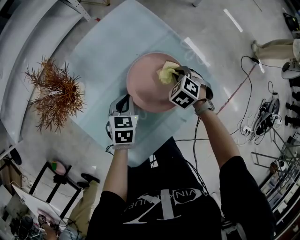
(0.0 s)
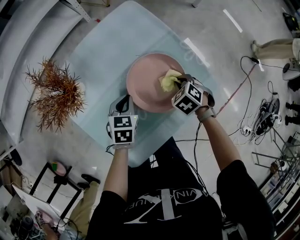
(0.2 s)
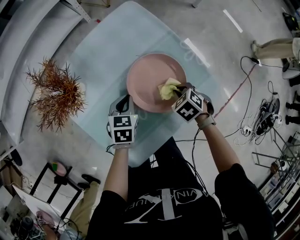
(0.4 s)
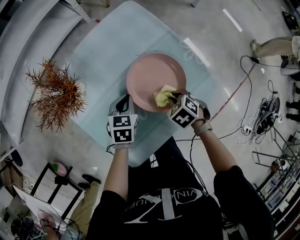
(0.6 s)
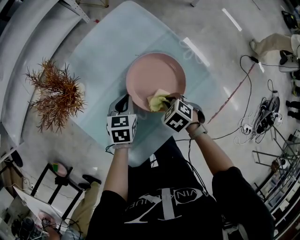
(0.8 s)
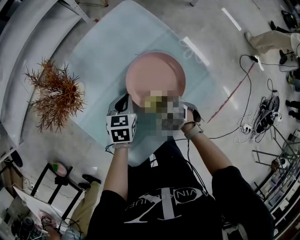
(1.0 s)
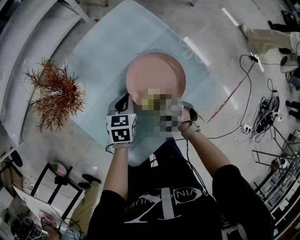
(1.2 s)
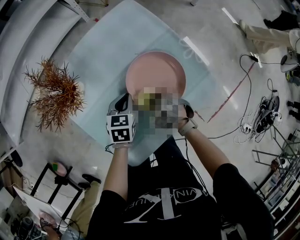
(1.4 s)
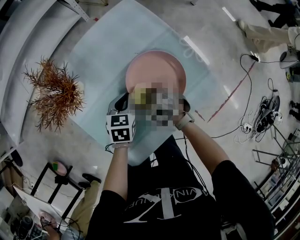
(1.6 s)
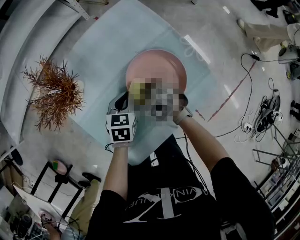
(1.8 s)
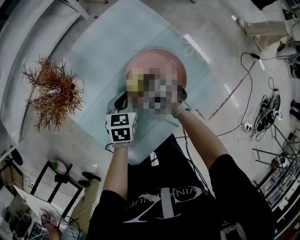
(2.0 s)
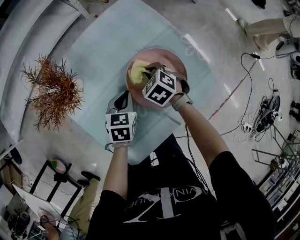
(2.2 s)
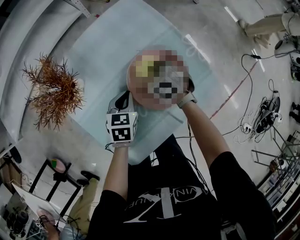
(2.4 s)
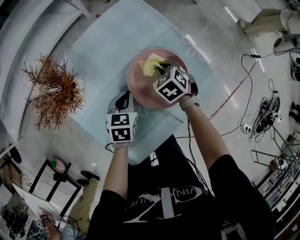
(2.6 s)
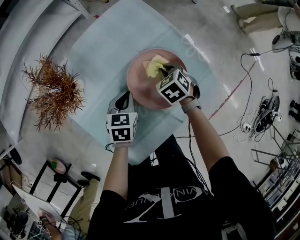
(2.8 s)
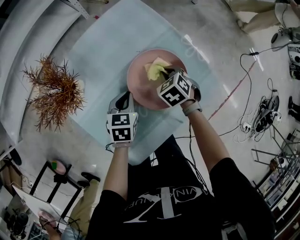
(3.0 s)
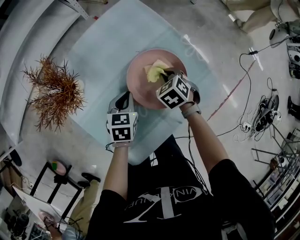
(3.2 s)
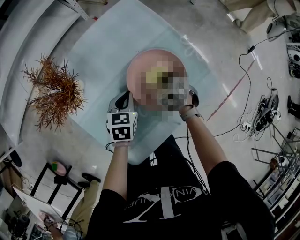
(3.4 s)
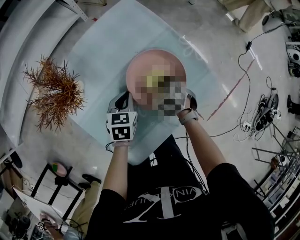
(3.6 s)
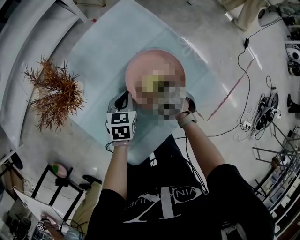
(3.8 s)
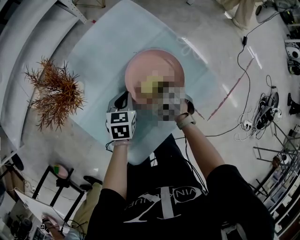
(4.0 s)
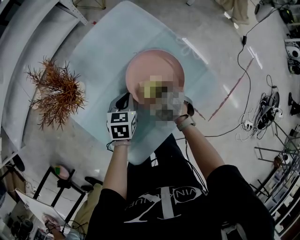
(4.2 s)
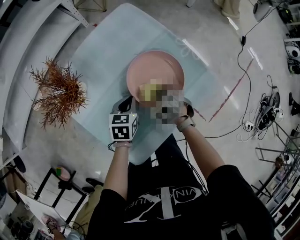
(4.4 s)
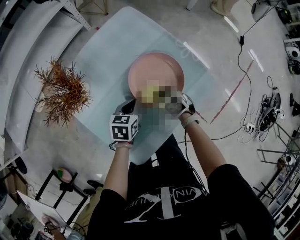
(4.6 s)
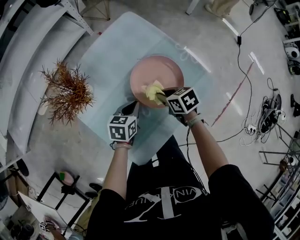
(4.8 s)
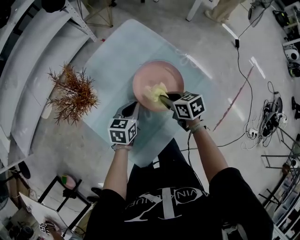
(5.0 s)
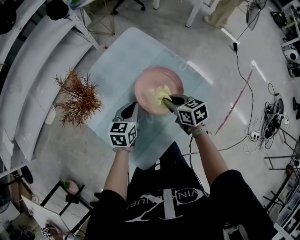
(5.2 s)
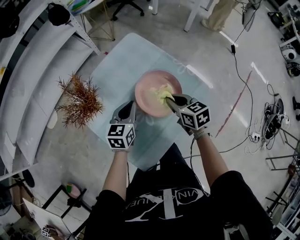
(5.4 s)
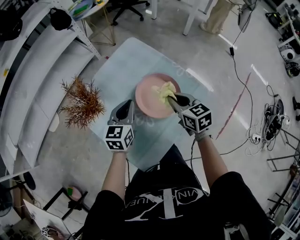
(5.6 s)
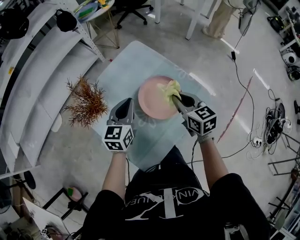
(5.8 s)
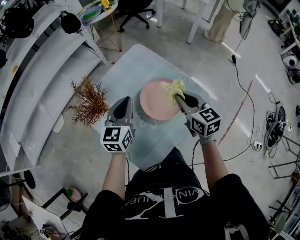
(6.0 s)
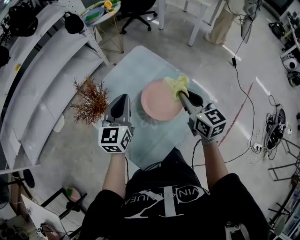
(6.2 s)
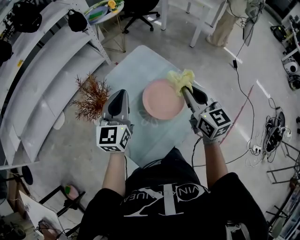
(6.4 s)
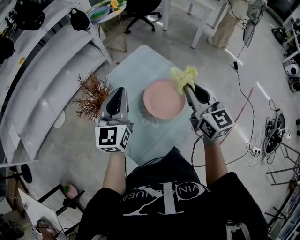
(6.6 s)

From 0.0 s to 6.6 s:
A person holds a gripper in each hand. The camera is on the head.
From 0.0 s to 1.6 s: The right gripper changes place by approximately 15 cm, and changes its angle by approximately 20 degrees.
From 1.6 s to 3.2 s: The right gripper moves to the right and forward, some 10 cm, and rotates some 20 degrees.
From 3.2 s to 5.0 s: The left gripper heads upward, covering roughly 5 cm. The right gripper is displaced backward and upward by about 10 cm, and turns by about 50 degrees.
From 5.0 s to 6.6 s: The two grippers go about 30 cm upward. The right gripper points its fingers approximately 40 degrees further upward, while the left gripper tilts its fingers about 40 degrees upward.

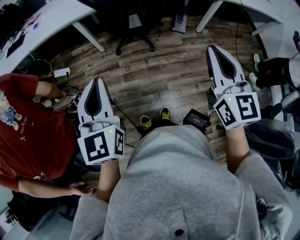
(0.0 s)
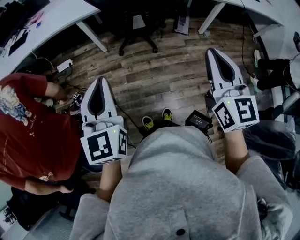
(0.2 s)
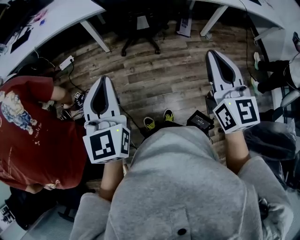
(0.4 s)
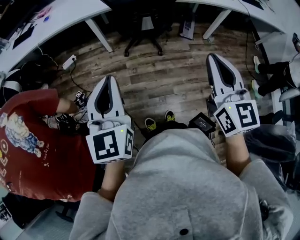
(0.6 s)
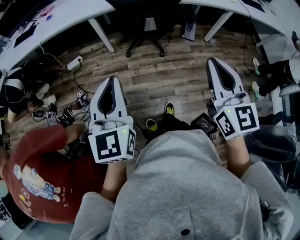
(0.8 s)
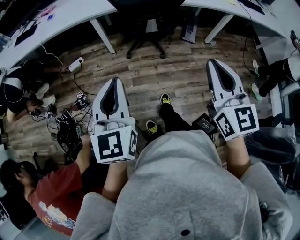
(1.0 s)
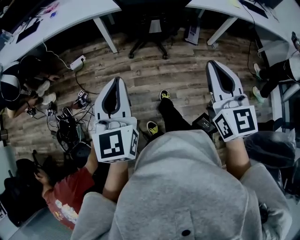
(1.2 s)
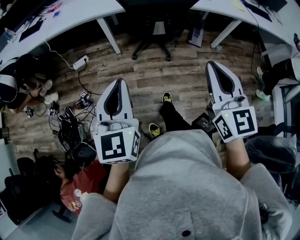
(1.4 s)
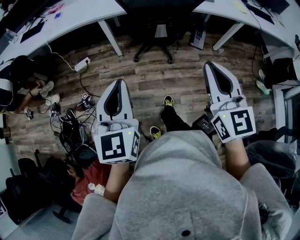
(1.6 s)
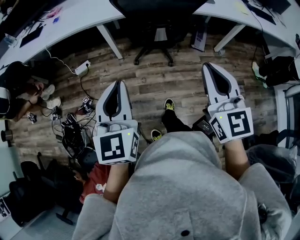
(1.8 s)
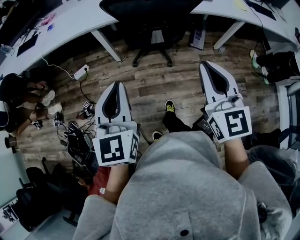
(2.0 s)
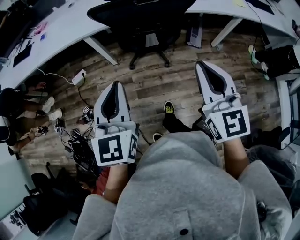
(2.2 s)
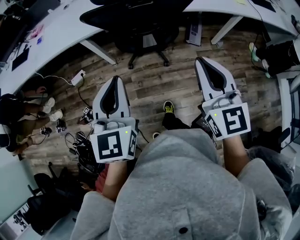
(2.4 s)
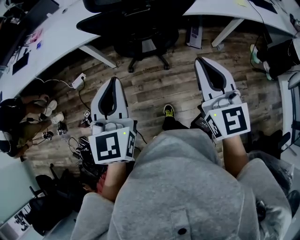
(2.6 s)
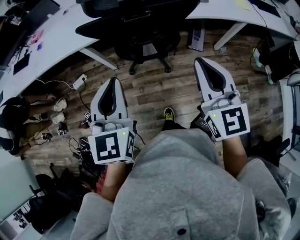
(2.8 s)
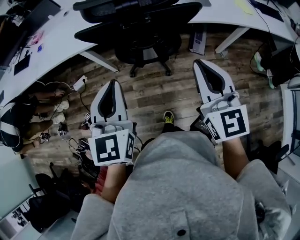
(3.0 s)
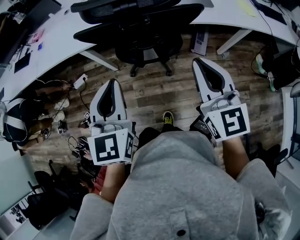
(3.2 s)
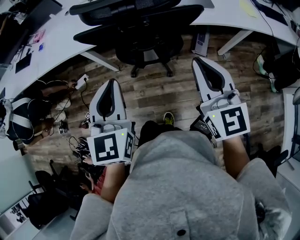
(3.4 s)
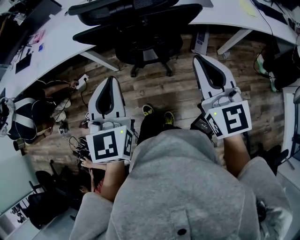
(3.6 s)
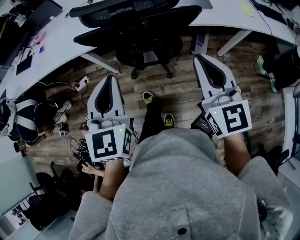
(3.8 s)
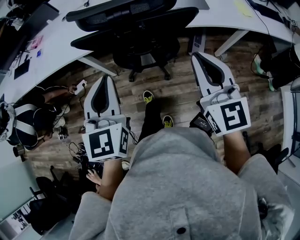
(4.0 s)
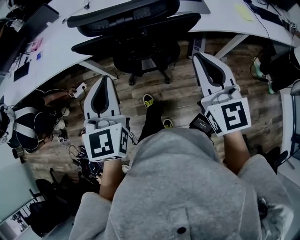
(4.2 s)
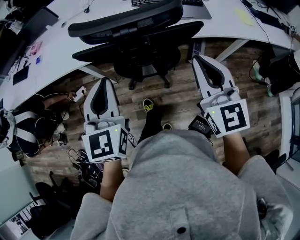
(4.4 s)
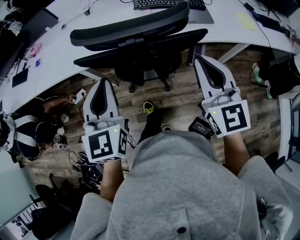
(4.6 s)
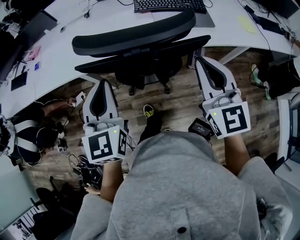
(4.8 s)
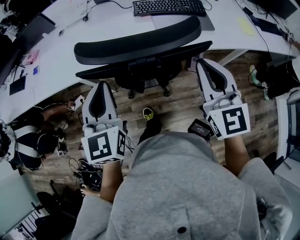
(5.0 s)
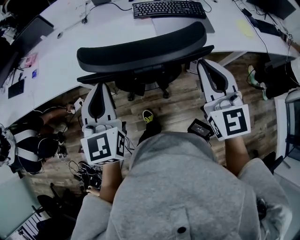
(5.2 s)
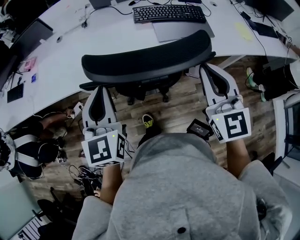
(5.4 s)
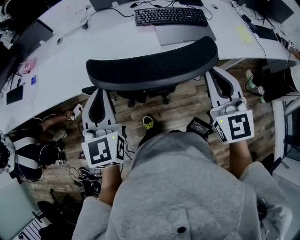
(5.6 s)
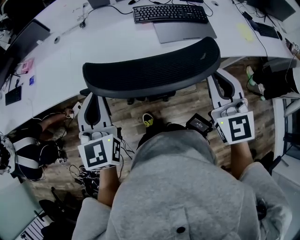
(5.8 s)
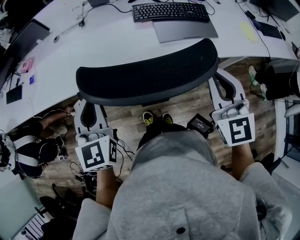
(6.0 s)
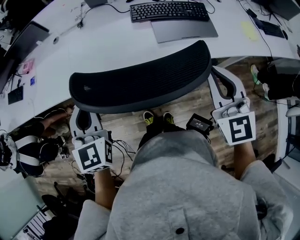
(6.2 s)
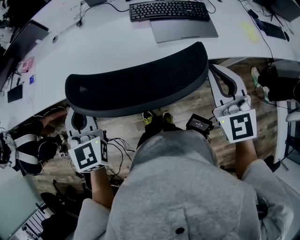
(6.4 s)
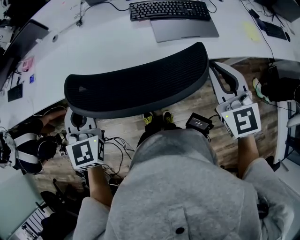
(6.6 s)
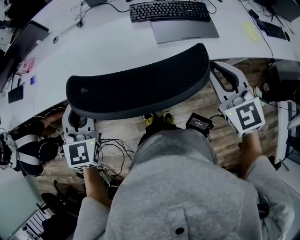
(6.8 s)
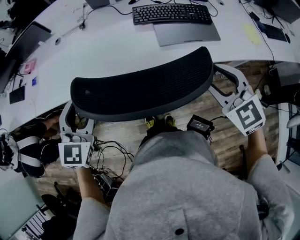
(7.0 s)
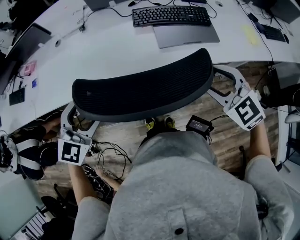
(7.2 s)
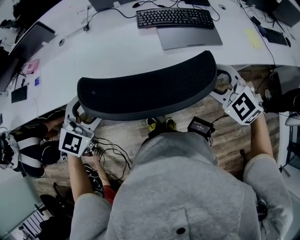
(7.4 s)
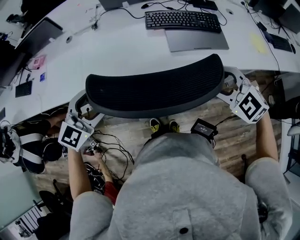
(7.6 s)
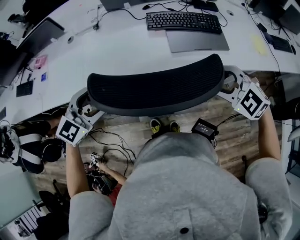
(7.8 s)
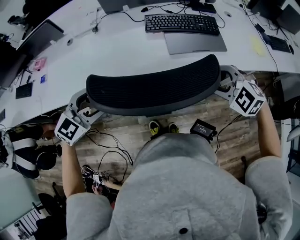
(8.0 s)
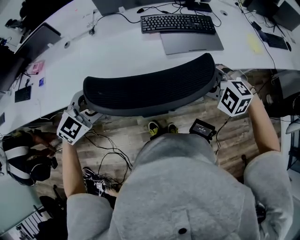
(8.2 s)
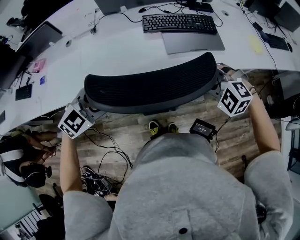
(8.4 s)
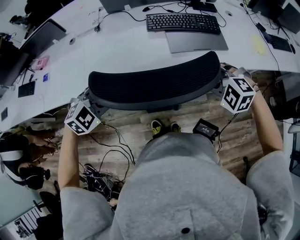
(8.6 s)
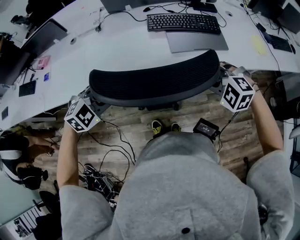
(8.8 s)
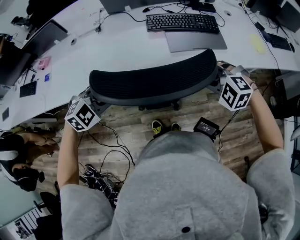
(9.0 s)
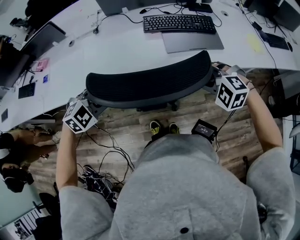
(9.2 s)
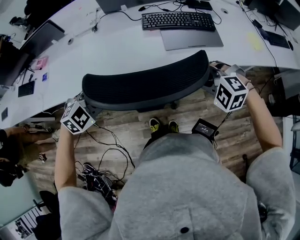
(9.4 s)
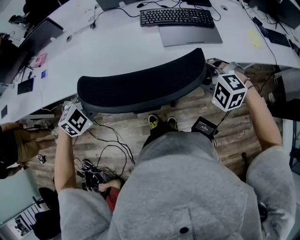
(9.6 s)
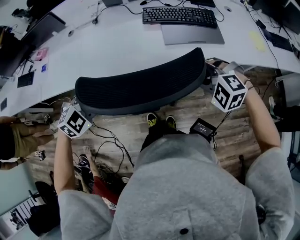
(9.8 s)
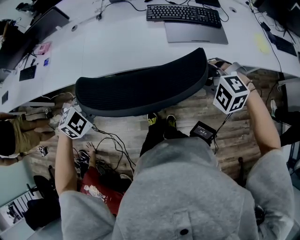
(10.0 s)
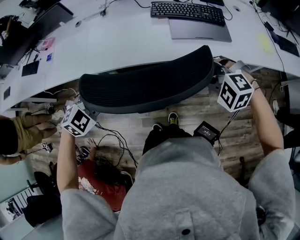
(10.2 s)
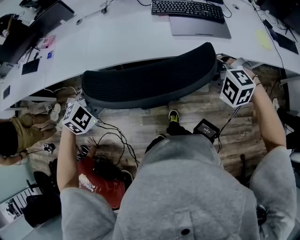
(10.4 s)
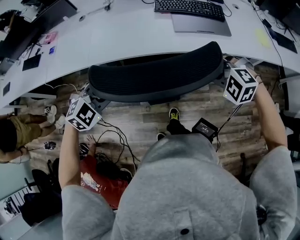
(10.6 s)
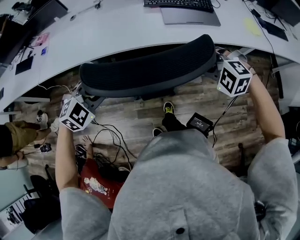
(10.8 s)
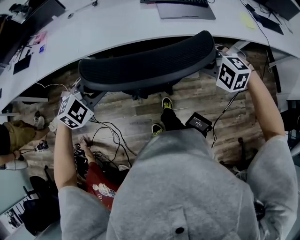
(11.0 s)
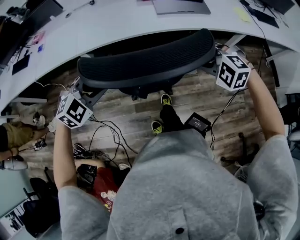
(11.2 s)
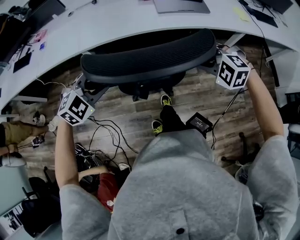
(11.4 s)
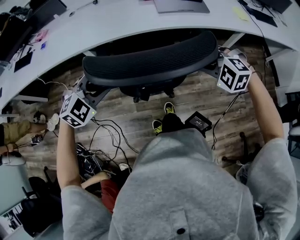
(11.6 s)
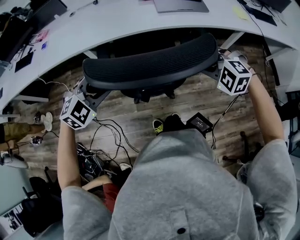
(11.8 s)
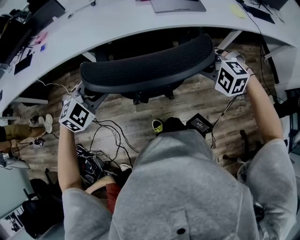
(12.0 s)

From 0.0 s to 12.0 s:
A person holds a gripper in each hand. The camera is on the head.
From 0.0 s to 1.6 s: The right gripper heads to the left, covering some 15 cm. Meanwhile the left gripper is displaced to the left by some 5 cm.
From 1.6 s to 3.0 s: The two grippers go roughly 25 cm forward and to the right.
From 3.0 s to 4.4 s: Both grippers move forward, some 10 cm.
From 4.4 s to 6.0 s: The left gripper heads forward and to the left, covering approximately 15 cm; the right gripper heads forward, covering approximately 10 cm.
From 6.0 s to 7.6 s: Both grippers travel together downward, some 5 cm. The right gripper swivels approximately 50 degrees, and opens up, while the left gripper changes its angle by roughly 40 degrees, and opens its fingers.
From 7.6 s to 9.0 s: The right gripper moves approximately 5 cm, swivels some 20 degrees, and closes. The left gripper moves downward, some 5 cm, rotates about 30 degrees, and closes its fingers.
From 9.0 s to 10.4 s: The right gripper is displaced backward by roughly 5 cm. The left gripper shifts about 10 cm backward.
From 10.4 s to 12.0 s: The two grippers go roughly 20 cm backward.

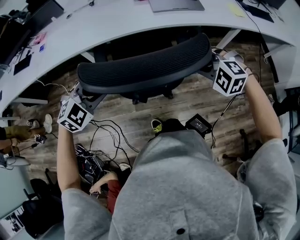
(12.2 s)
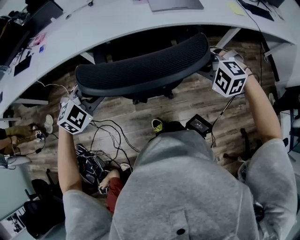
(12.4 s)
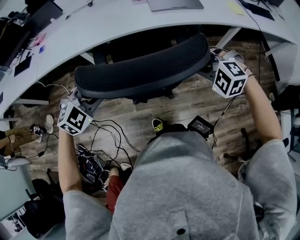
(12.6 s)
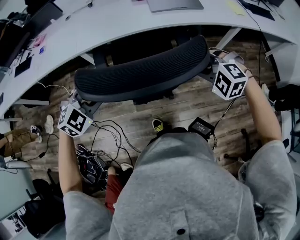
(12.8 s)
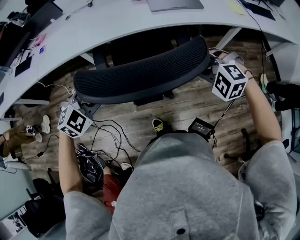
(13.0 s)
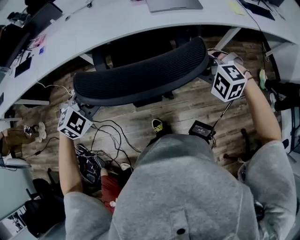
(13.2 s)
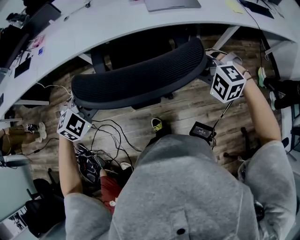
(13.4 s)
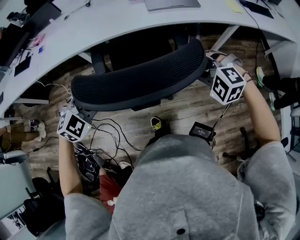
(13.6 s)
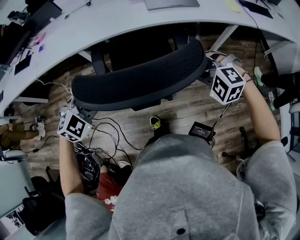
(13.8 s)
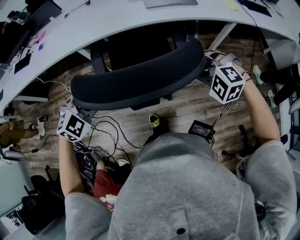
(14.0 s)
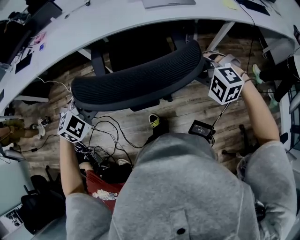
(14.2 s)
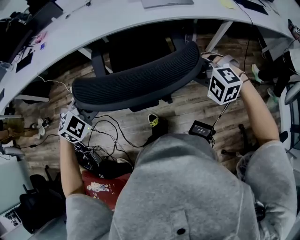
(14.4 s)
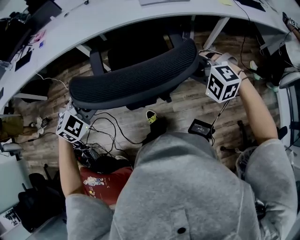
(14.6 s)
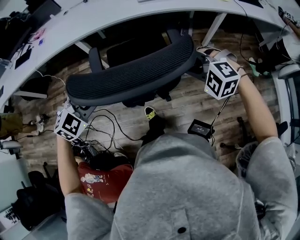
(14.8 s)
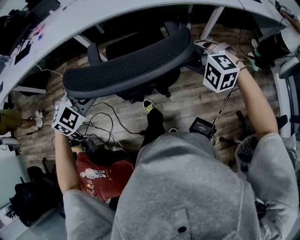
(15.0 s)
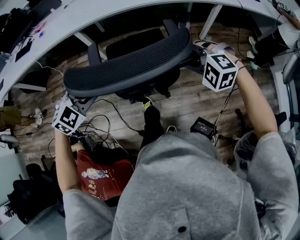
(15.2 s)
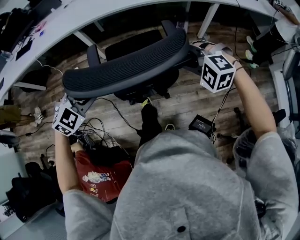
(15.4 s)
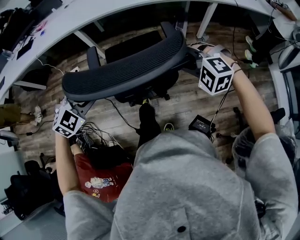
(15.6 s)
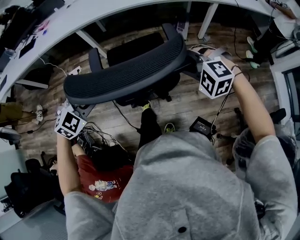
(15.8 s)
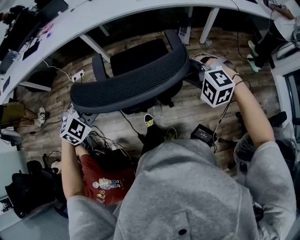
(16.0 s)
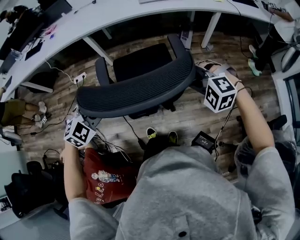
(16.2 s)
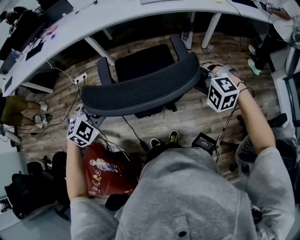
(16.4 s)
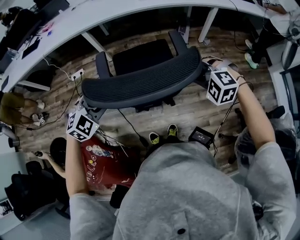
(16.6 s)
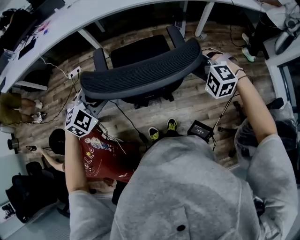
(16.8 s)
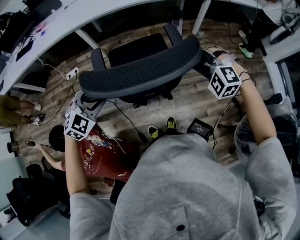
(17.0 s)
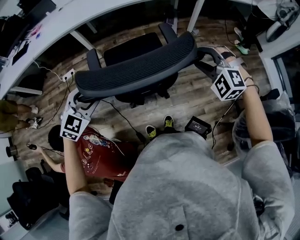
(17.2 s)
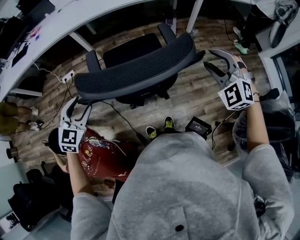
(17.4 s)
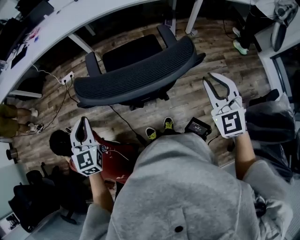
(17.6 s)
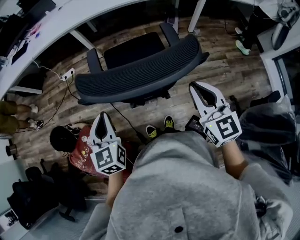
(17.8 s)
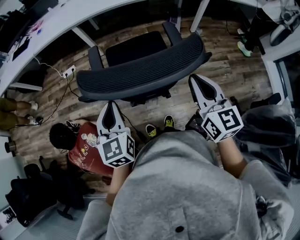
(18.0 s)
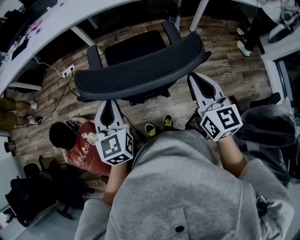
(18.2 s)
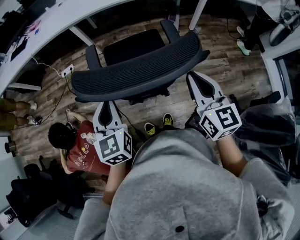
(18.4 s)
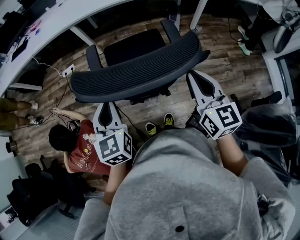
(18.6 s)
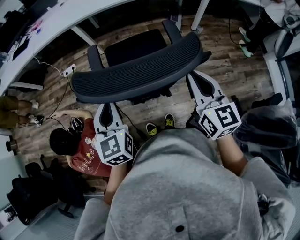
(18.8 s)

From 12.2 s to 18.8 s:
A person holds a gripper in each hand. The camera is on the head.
From 12.2 s to 13.8 s: The left gripper moves about 5 cm.
From 13.8 s to 15.4 s: The two grippers go about 20 cm backward.
From 15.4 s to 17.2 s: The right gripper is displaced backward and to the right by roughly 10 cm, turns by about 20 degrees, and opens its fingers, while the left gripper shifts approximately 10 cm backward.
From 17.2 s to 18.8 s: The right gripper heads upward, covering about 5 cm, rotates around the line of its fingers by approximately 70 degrees, clockwise from behind, and closes up, while the left gripper goes about 10 cm to the right and backward, rotates about 60 degrees, and closes up.
